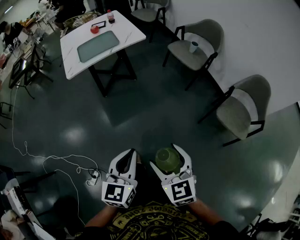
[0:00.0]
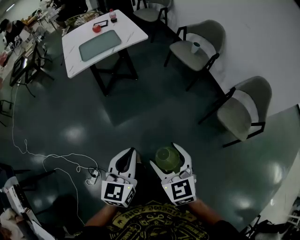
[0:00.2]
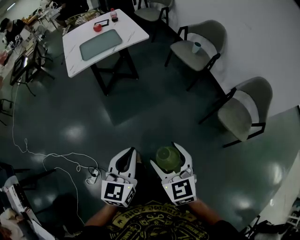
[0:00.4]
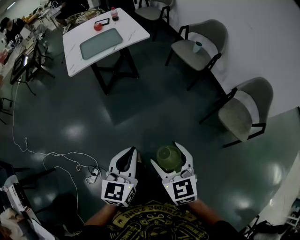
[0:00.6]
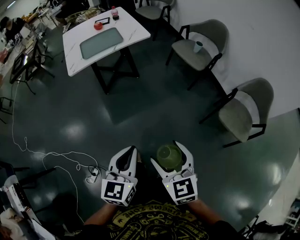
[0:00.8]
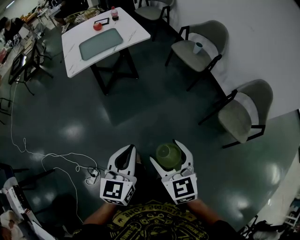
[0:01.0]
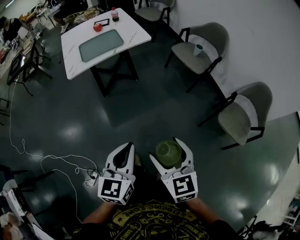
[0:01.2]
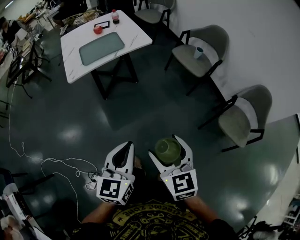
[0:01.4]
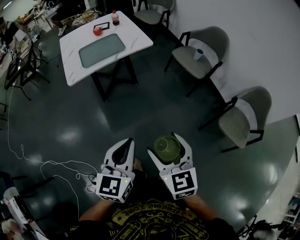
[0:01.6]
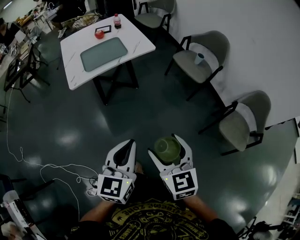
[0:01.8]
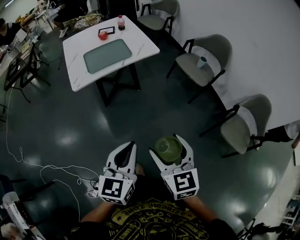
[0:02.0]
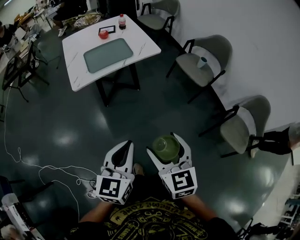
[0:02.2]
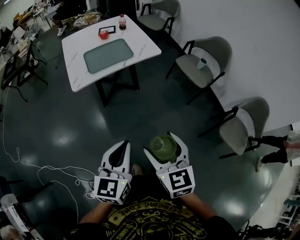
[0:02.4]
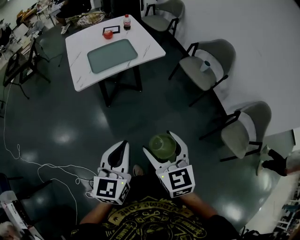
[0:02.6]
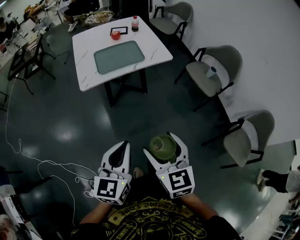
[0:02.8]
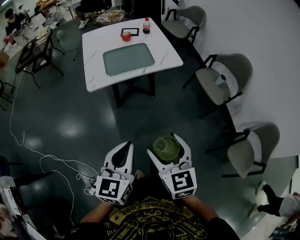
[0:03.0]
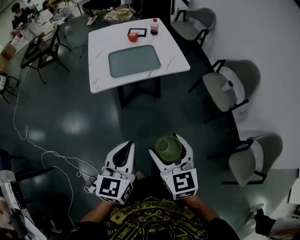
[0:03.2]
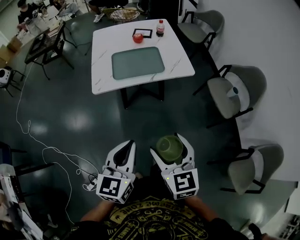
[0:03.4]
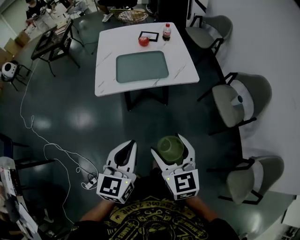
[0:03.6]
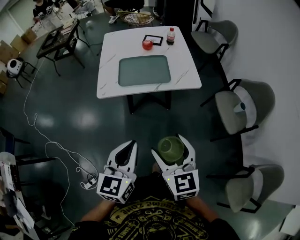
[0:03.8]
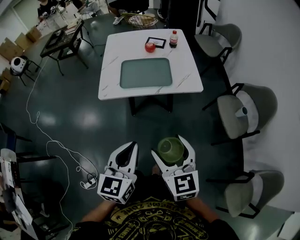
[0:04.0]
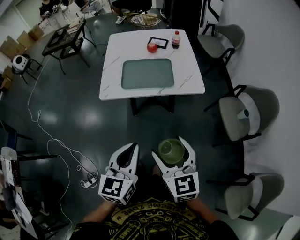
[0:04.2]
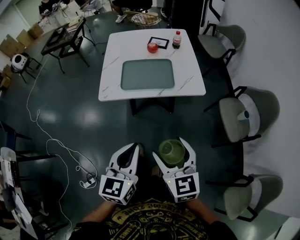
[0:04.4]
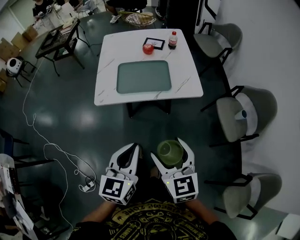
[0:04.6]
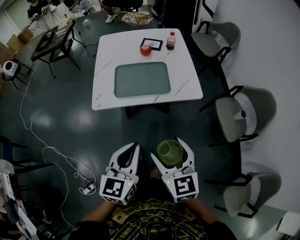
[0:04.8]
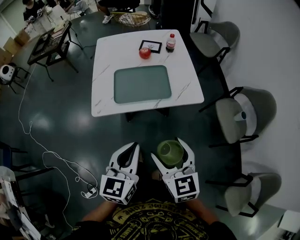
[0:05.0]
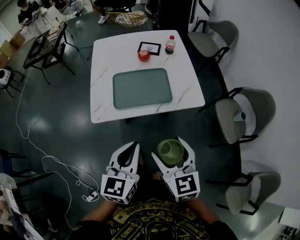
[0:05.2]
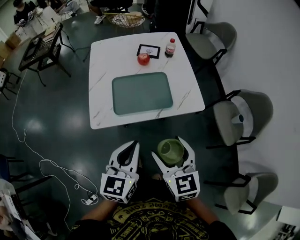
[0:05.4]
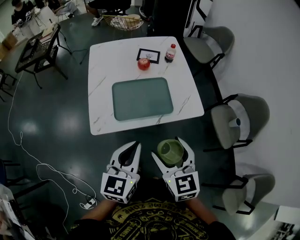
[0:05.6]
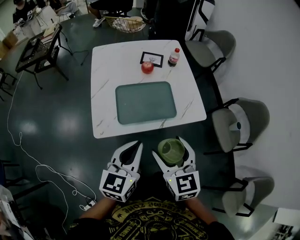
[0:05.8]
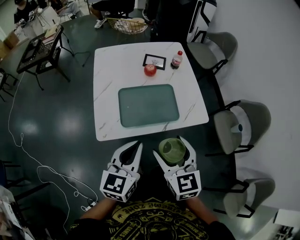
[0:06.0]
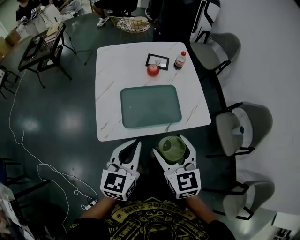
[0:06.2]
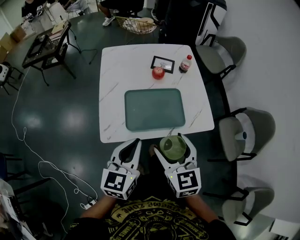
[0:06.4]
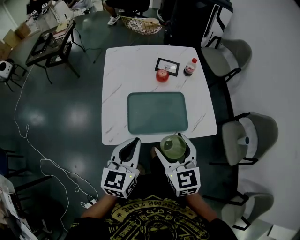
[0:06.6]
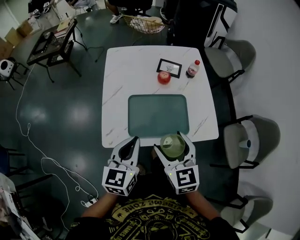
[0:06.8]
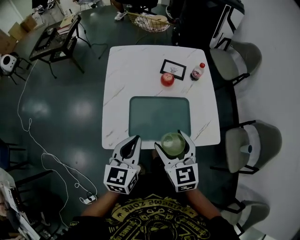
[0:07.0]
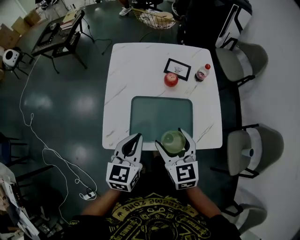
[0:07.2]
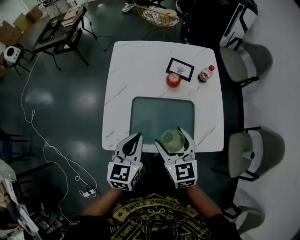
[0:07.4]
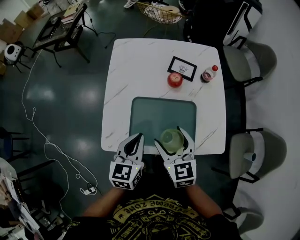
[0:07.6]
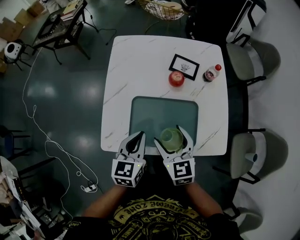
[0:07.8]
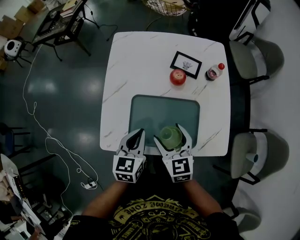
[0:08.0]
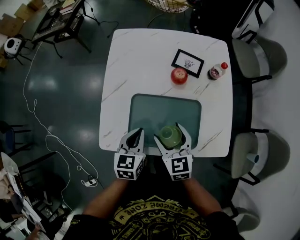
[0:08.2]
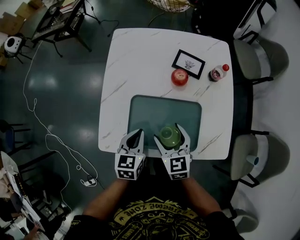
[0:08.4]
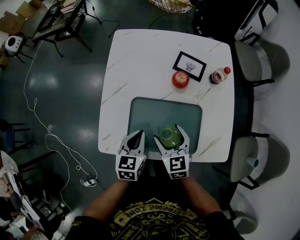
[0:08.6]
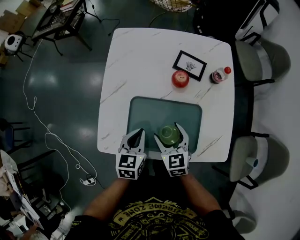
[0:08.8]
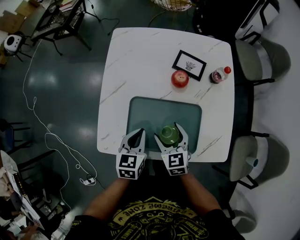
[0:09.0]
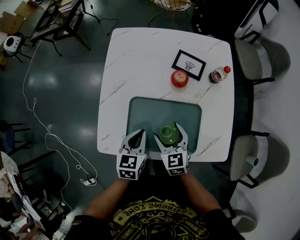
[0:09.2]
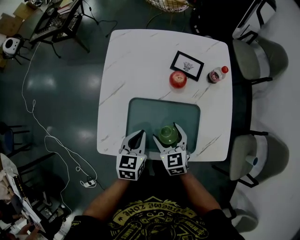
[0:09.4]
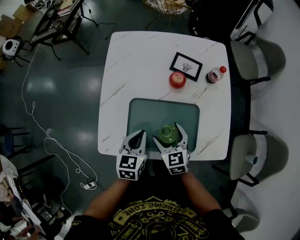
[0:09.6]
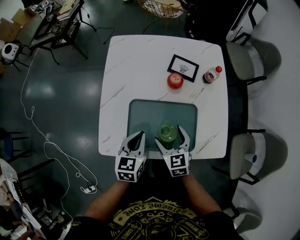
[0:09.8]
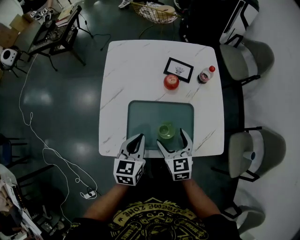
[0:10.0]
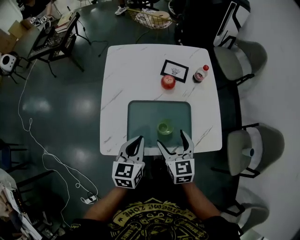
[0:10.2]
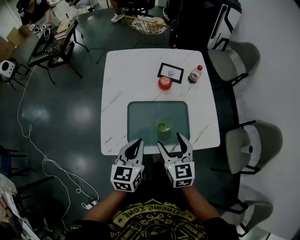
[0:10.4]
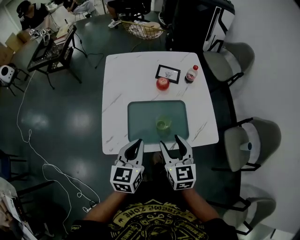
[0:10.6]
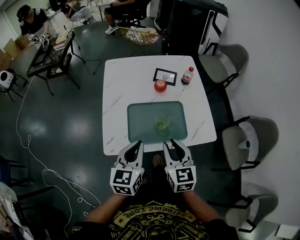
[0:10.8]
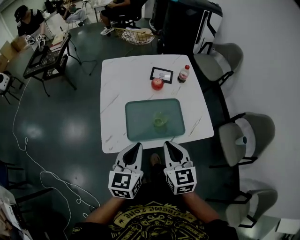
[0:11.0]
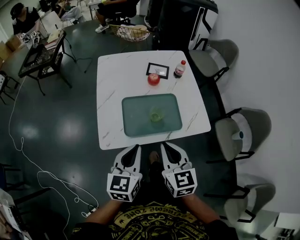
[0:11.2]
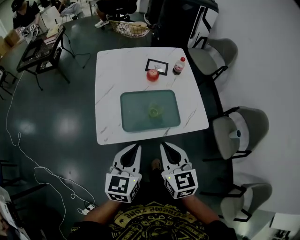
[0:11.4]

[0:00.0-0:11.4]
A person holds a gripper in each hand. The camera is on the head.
0:00.0 to 0:01.4: Both grippers move forward, about 10 cm.
0:01.4 to 0:02.8: The left gripper goes roughly 15 cm to the left and forward; the right gripper heads forward and to the left, covering roughly 15 cm.
0:02.8 to 0:04.2: The right gripper is displaced forward by approximately 20 cm. The left gripper is displaced forward and to the right by some 15 cm.
0:04.2 to 0:05.6: The grippers both shift forward by some 20 cm.
0:05.6 to 0:07.2: The grippers both shift forward by about 15 cm.
0:07.2 to 0:08.6: The grippers both shift downward and forward by roughly 15 cm.
0:08.6 to 0:10.0: The left gripper ends up some 5 cm from where it was.
0:10.0 to 0:11.4: The two grippers go about 20 cm backward and upward. The right gripper closes up.

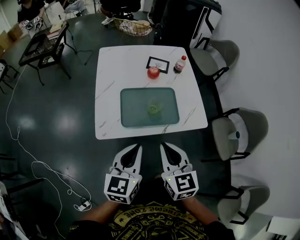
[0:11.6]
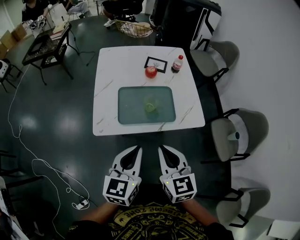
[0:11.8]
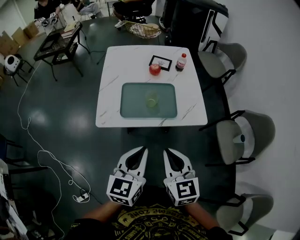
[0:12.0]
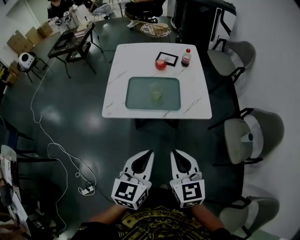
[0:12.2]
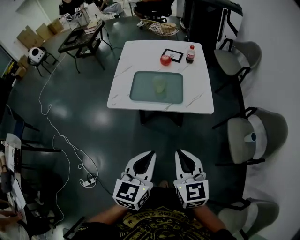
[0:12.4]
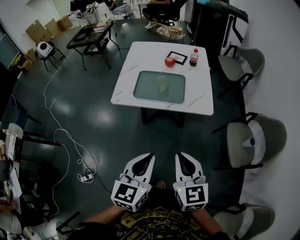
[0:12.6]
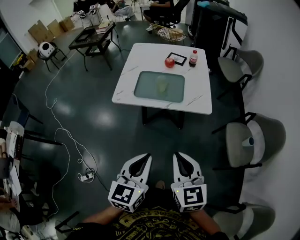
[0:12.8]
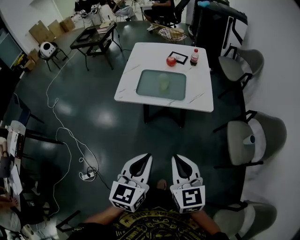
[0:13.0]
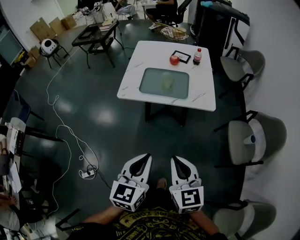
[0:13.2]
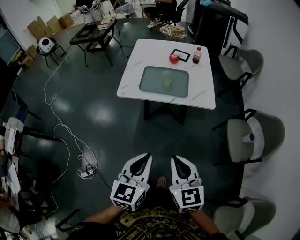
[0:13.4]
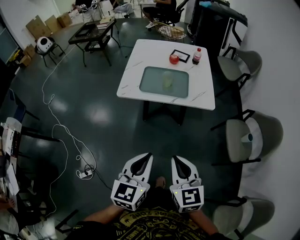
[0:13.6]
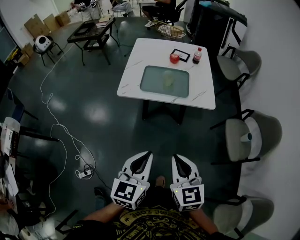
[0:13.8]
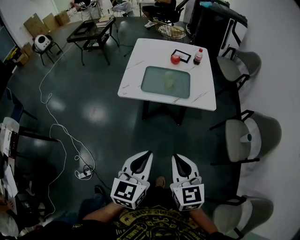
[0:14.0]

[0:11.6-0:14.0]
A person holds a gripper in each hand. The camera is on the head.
0:11.6 to 0:12.8: The two grippers go roughly 30 cm backward and to the right.
0:12.8 to 0:14.0: The two grippers go roughly 5 cm to the left.

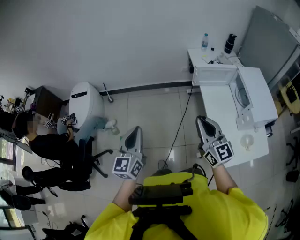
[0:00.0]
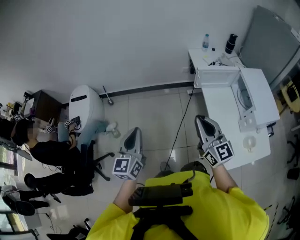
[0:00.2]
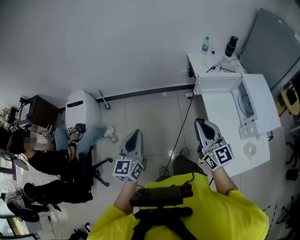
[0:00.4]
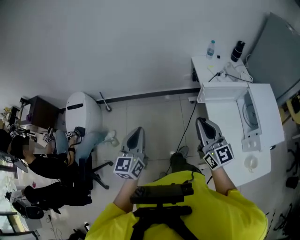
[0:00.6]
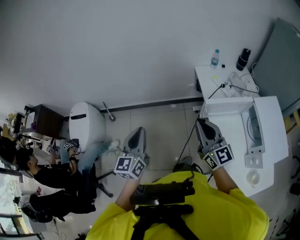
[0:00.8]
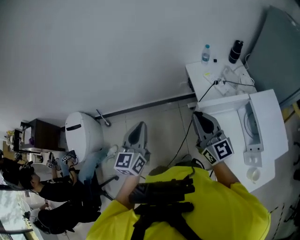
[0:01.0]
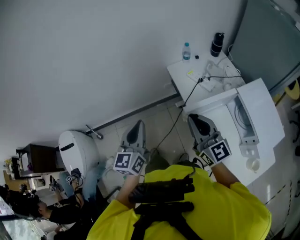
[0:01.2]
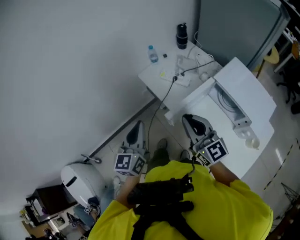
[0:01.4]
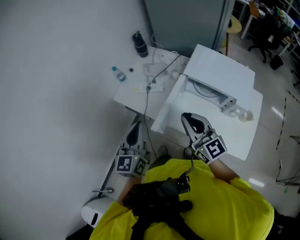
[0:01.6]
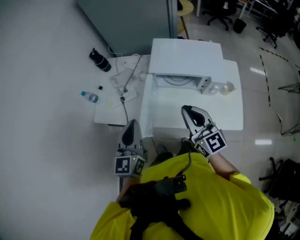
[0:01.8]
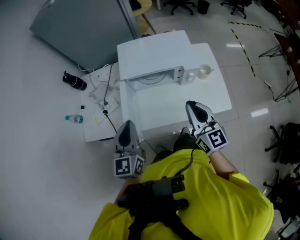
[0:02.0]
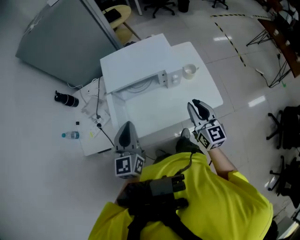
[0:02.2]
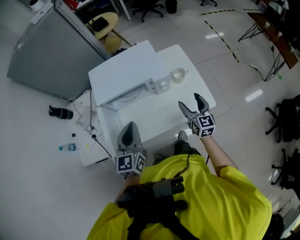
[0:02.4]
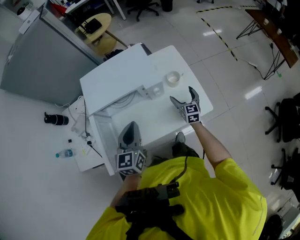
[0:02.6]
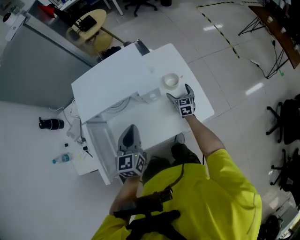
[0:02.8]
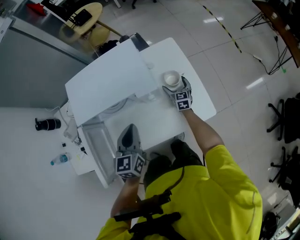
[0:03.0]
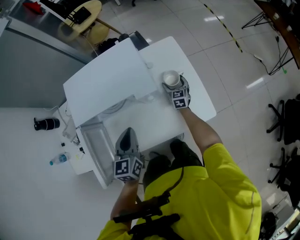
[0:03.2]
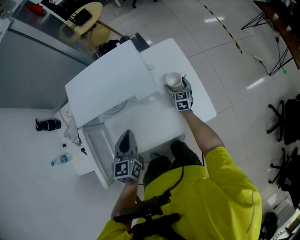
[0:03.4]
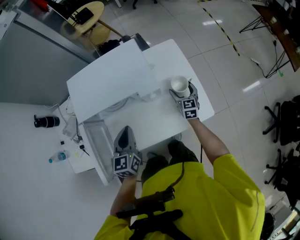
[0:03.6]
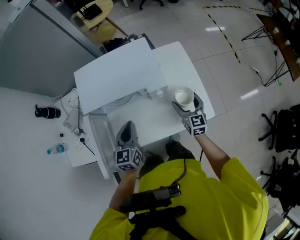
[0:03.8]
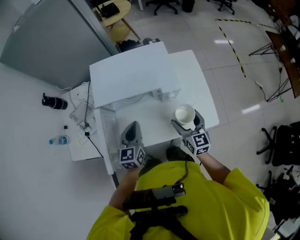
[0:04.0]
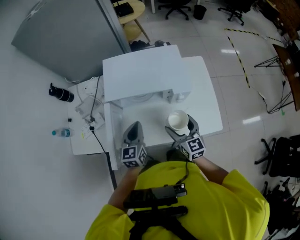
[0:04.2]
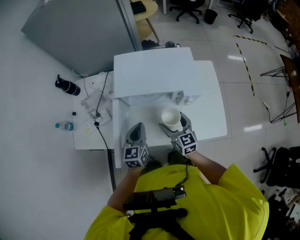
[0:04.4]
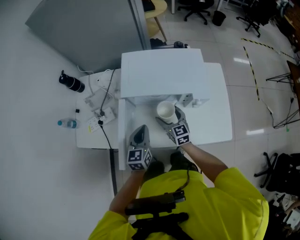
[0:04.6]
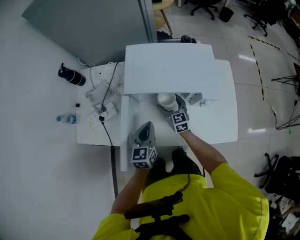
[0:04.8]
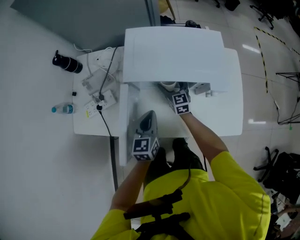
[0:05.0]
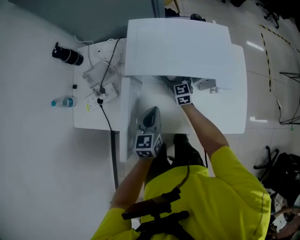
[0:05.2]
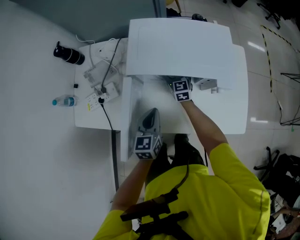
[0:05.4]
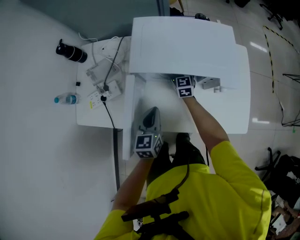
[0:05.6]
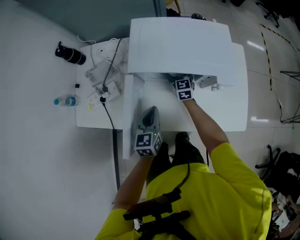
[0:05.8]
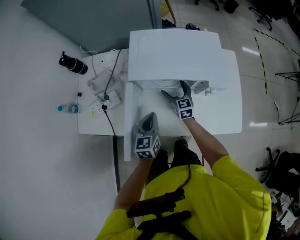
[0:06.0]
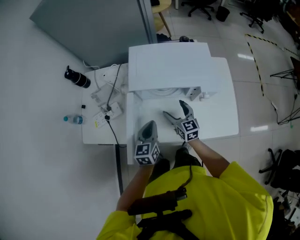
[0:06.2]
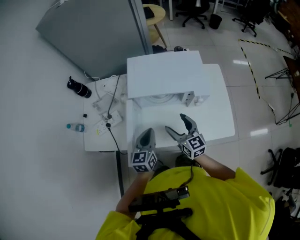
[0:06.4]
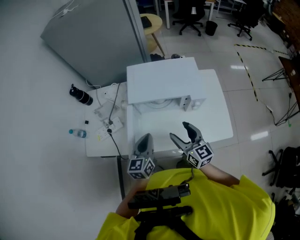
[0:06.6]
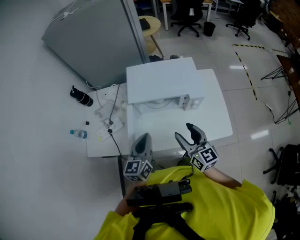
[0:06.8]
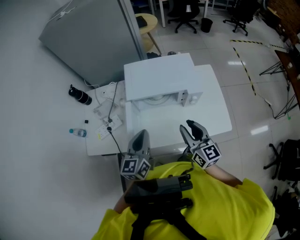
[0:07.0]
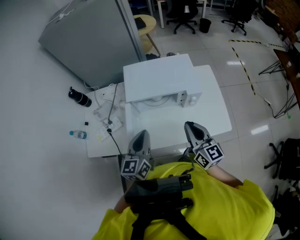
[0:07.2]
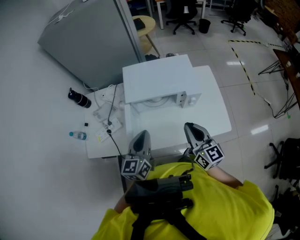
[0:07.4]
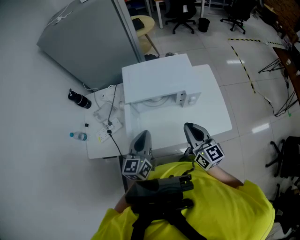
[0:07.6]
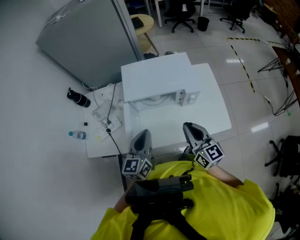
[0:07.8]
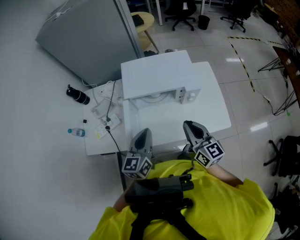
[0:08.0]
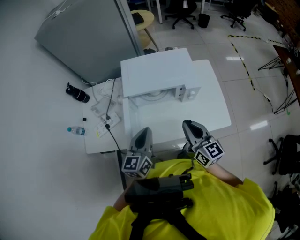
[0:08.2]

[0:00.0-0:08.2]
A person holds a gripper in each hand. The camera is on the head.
0:00.0 to 0:01.6: Both grippers are carried about 50 cm. The left gripper swivels roughly 50 degrees; the right gripper swivels roughly 50 degrees.
0:01.6 to 0:03.2: The left gripper shifts by some 40 cm, and turns by some 50 degrees, while the right gripper shifts by some 70 cm, rotates roughly 80 degrees, and opens its fingers.
0:03.2 to 0:05.0: The left gripper is displaced to the left by roughly 15 cm; the right gripper heads to the left, covering roughly 35 cm, and turns by approximately 30 degrees.
0:05.0 to 0:06.6: The left gripper heads upward and backward, covering roughly 15 cm, while the right gripper shifts about 35 cm backward and upward.
0:06.6 to 0:08.2: The grippers both shift upward by about 5 cm. The right gripper closes.

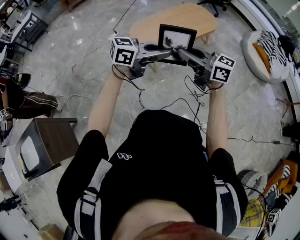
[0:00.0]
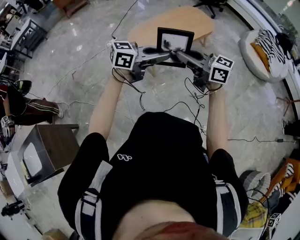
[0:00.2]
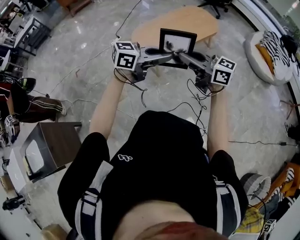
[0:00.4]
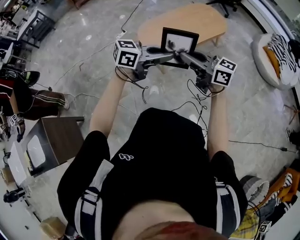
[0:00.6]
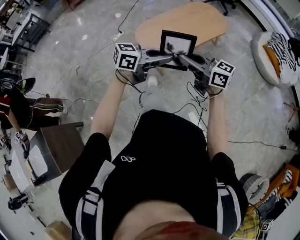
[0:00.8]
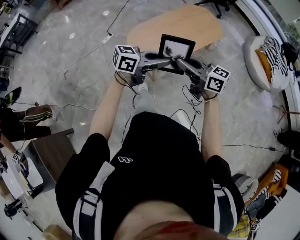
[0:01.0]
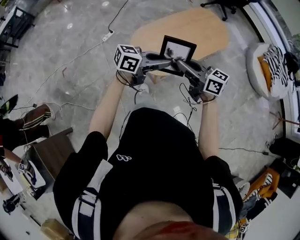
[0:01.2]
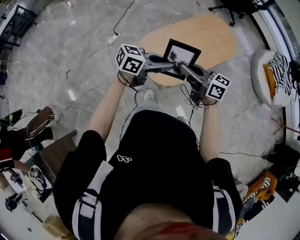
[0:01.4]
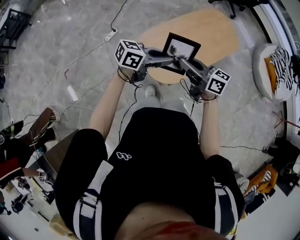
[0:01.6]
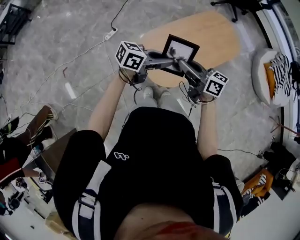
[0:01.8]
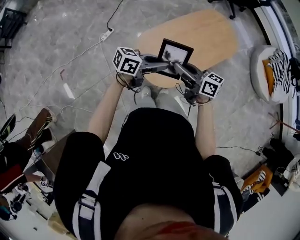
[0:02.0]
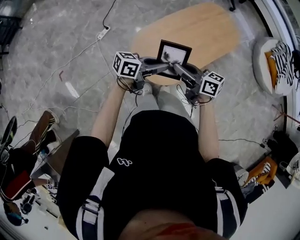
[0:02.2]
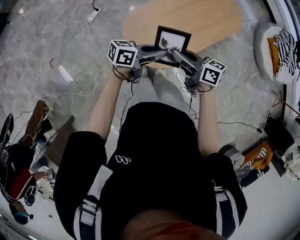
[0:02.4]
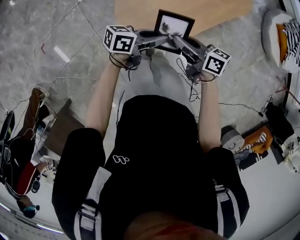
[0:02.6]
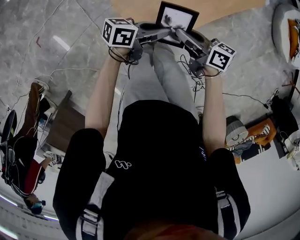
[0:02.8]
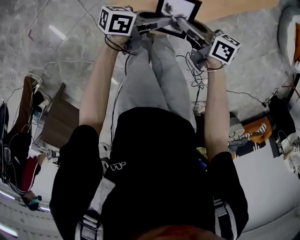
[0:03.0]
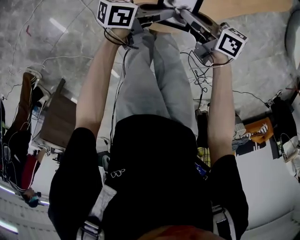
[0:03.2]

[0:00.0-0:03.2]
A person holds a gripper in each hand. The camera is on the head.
0:00.0 to 0:01.6: The two grippers travel together, roughly 50 cm. The right gripper swivels some 20 degrees.
0:01.6 to 0:03.2: Both grippers travel together downward, approximately 40 cm. The right gripper swivels some 30 degrees; the left gripper changes its angle by some 40 degrees.
